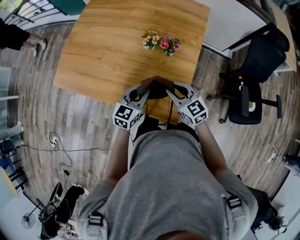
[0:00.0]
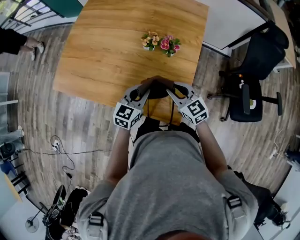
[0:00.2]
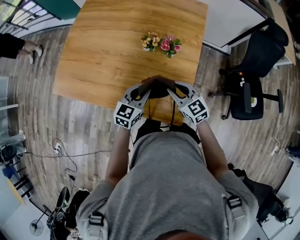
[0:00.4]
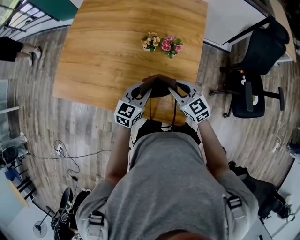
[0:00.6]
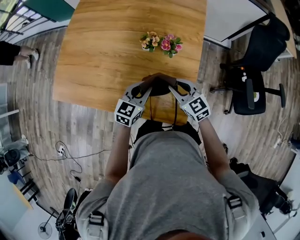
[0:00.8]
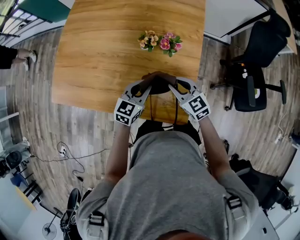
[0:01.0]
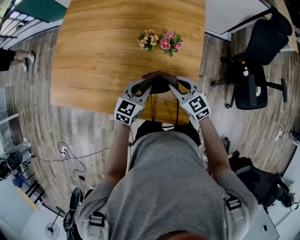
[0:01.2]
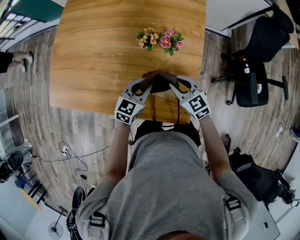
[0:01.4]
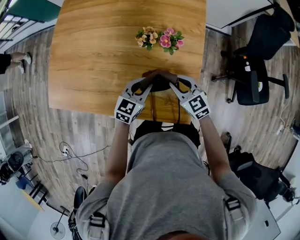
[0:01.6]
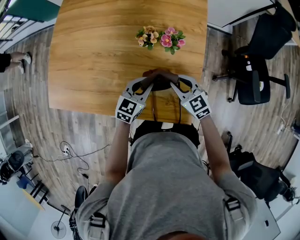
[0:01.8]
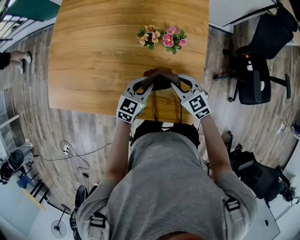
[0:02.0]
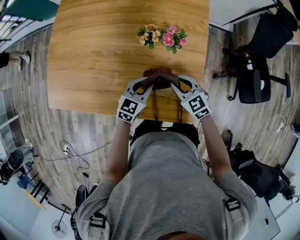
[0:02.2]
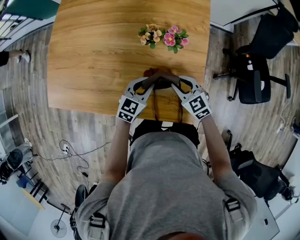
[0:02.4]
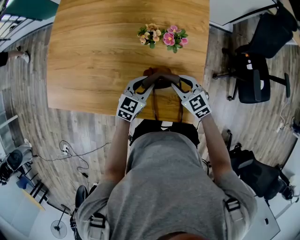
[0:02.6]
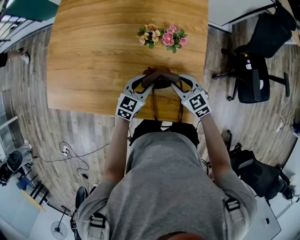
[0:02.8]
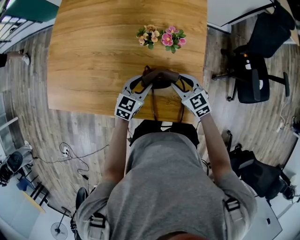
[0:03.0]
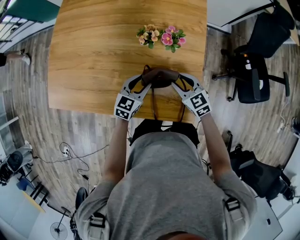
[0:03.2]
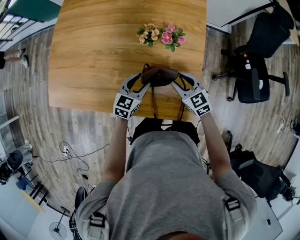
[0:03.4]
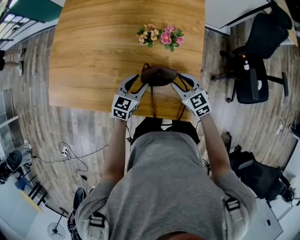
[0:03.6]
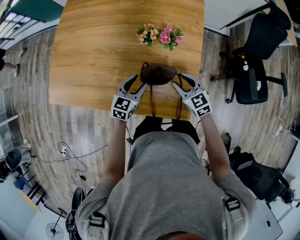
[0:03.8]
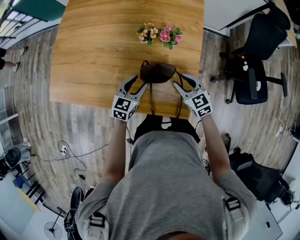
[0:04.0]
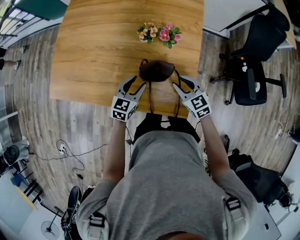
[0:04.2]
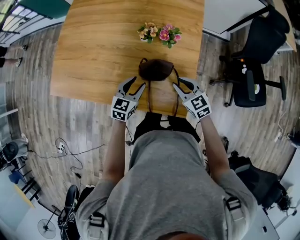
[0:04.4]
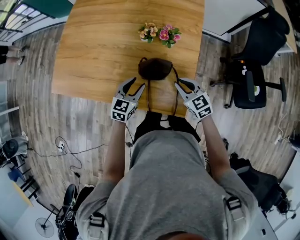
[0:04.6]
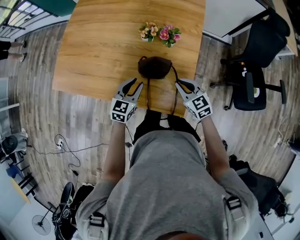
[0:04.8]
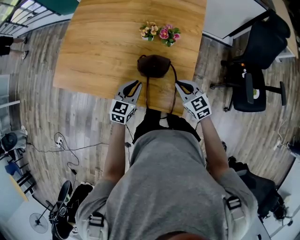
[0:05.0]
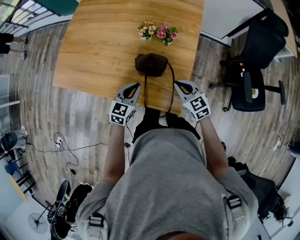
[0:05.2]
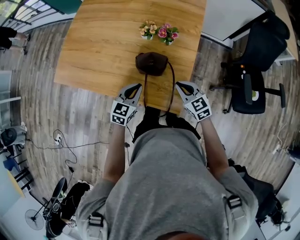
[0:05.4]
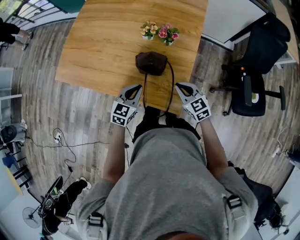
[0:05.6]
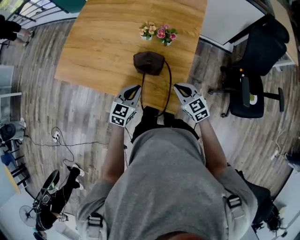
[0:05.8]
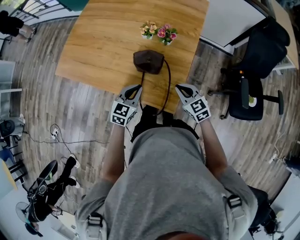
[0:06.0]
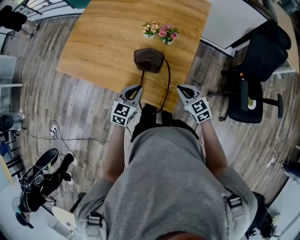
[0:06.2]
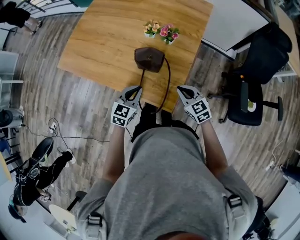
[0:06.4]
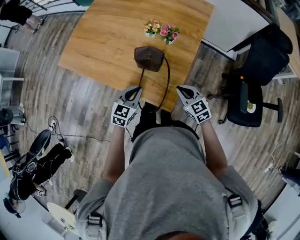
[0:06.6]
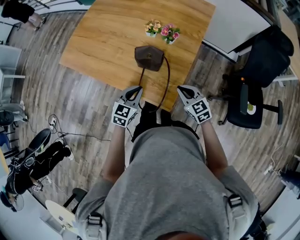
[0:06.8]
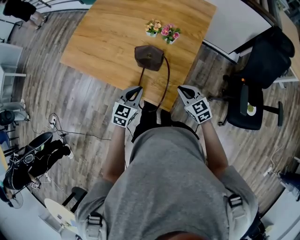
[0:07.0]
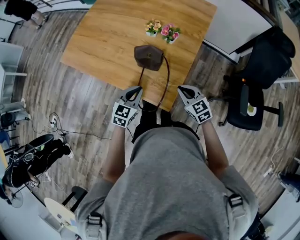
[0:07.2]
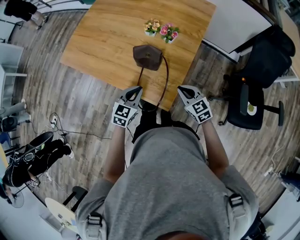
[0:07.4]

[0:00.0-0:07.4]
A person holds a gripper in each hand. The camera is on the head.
0:00.0 to 0:01.4: The grippers both shift forward and downward by roughly 10 cm.
0:01.4 to 0:03.0: The left gripper moves about 5 cm, and opens.
0:03.0 to 0:04.4: The grippers both shift backward by some 5 cm.
0:04.4 to 0:06.0: The right gripper is displaced backward and to the right by approximately 10 cm, and closes up. Meanwhile the left gripper heads backward, covering about 10 cm, and closes.
0:06.0 to 0:07.4: The left gripper moves approximately 5 cm.

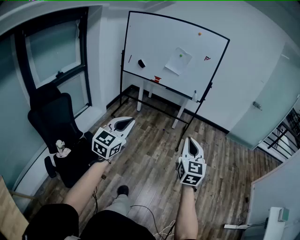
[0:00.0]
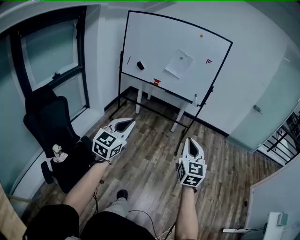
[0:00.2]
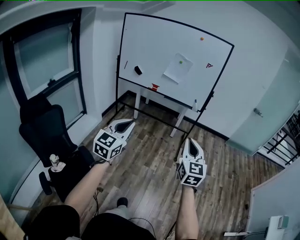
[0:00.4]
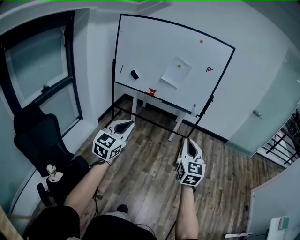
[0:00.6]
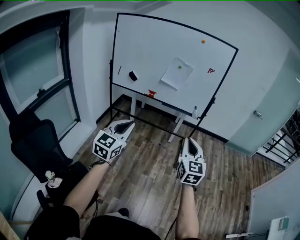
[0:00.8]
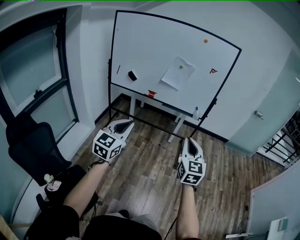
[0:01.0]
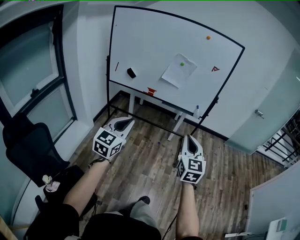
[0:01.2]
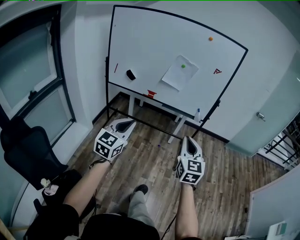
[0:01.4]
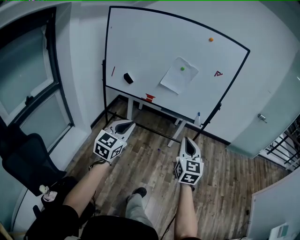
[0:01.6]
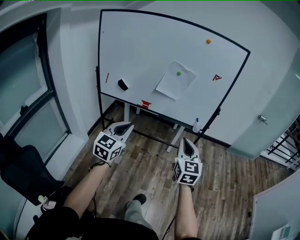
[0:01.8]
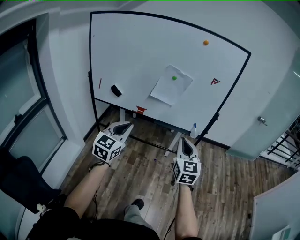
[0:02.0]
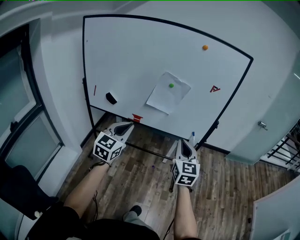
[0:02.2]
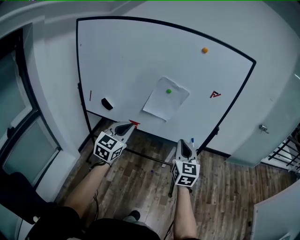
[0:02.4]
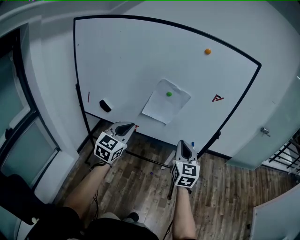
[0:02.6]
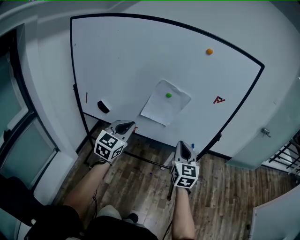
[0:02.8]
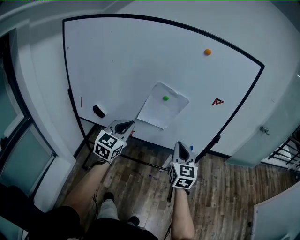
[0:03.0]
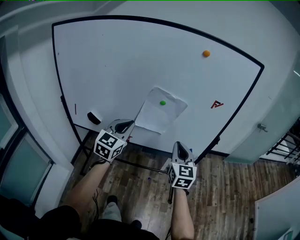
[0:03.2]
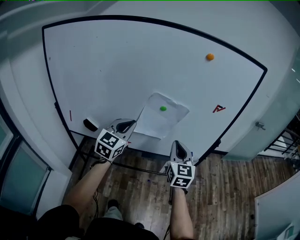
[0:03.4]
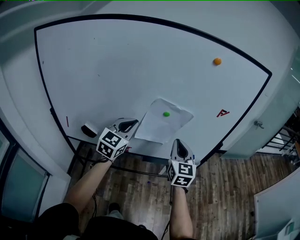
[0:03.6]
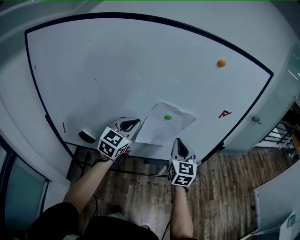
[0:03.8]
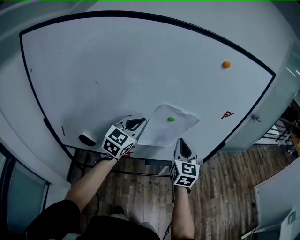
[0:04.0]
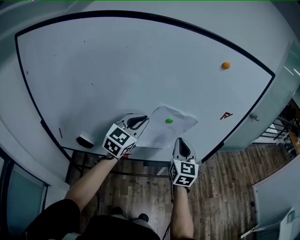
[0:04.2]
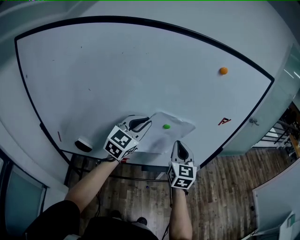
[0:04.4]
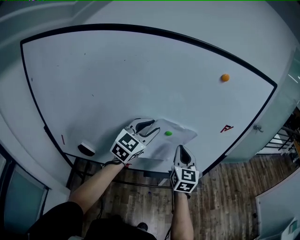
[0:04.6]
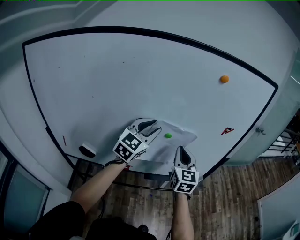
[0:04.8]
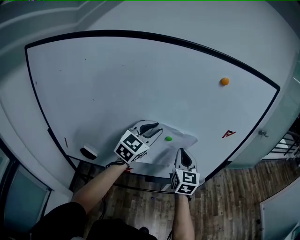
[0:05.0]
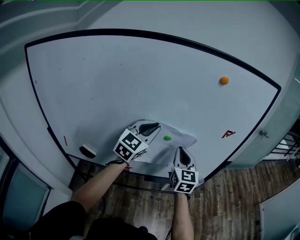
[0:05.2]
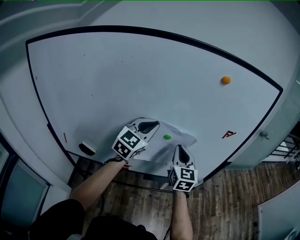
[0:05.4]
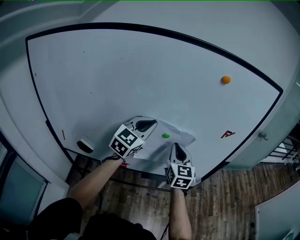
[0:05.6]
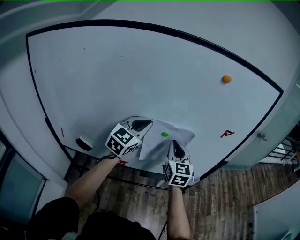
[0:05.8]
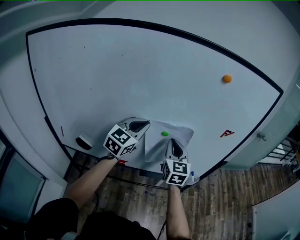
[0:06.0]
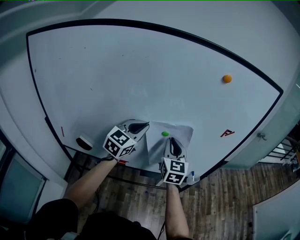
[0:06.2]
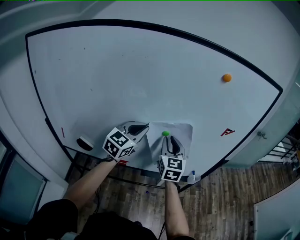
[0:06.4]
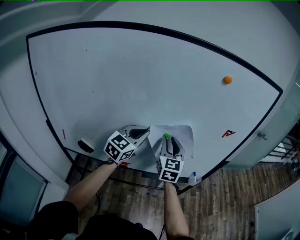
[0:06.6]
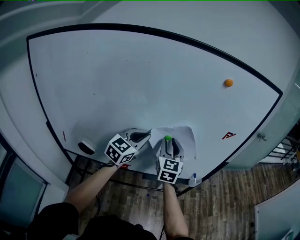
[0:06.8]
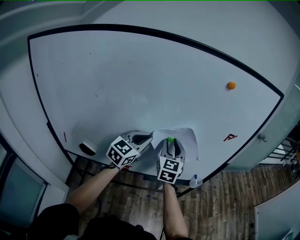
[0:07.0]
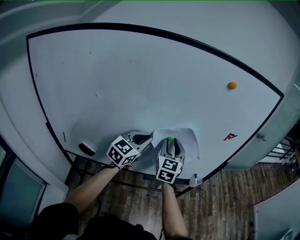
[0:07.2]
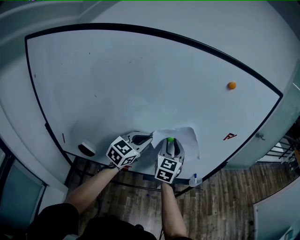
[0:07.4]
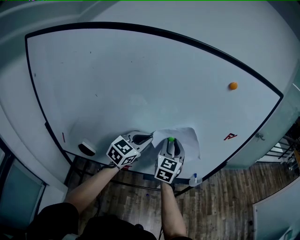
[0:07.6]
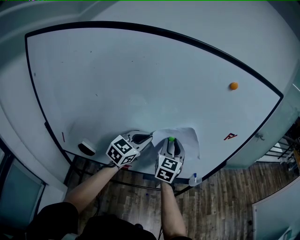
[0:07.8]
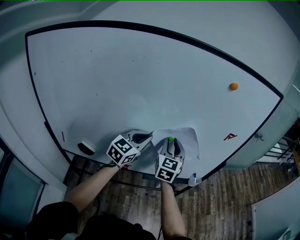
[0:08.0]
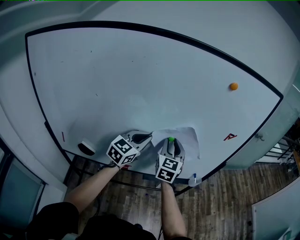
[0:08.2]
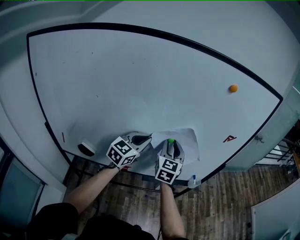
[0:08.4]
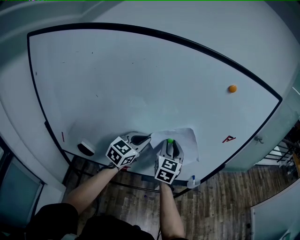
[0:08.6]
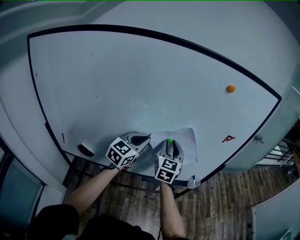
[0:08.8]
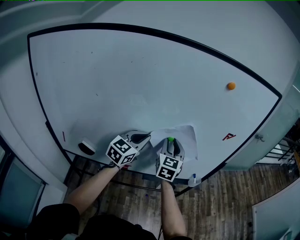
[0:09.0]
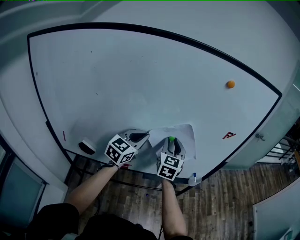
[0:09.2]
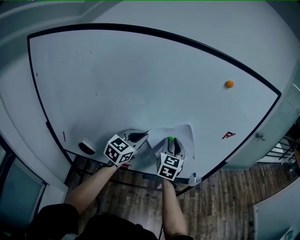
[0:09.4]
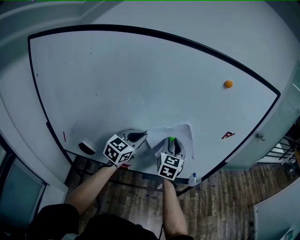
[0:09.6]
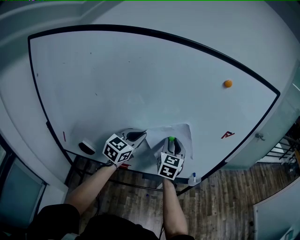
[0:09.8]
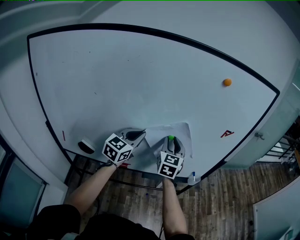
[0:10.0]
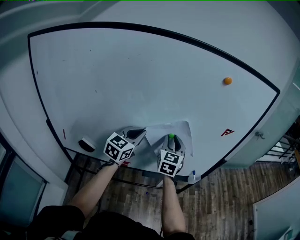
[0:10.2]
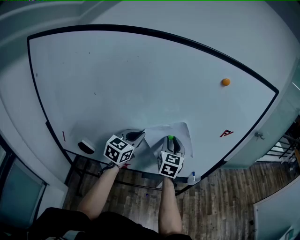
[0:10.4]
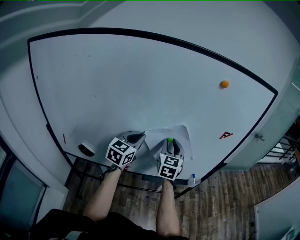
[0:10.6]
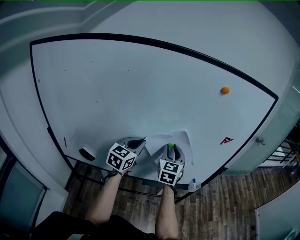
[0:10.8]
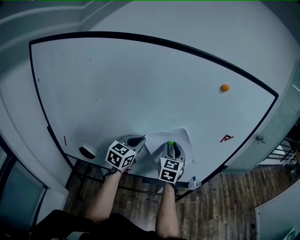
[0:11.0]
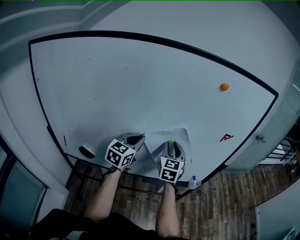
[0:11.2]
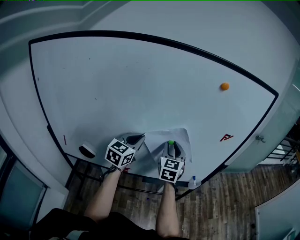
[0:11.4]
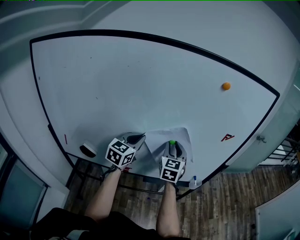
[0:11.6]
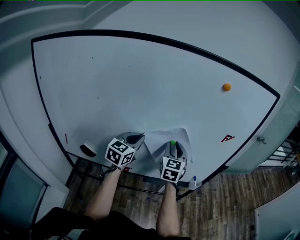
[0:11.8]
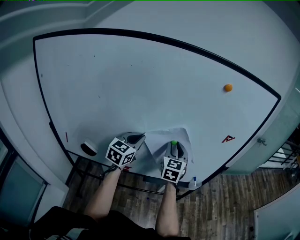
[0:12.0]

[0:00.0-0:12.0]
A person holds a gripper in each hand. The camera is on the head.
0:00.0 to 0:01.6: The pair of grippers is taken forward, about 50 cm.
0:01.6 to 0:03.0: Both grippers travel together forward, about 40 cm.
0:03.0 to 0:04.4: The right gripper travels forward and to the left by approximately 20 cm. Meanwhile the left gripper is displaced forward by some 20 cm, and swivels roughly 20 degrees.
0:04.4 to 0:06.0: The right gripper ends up some 5 cm from where it was. The left gripper opens, then closes again.
0:06.0 to 0:07.6: The right gripper opens up.
0:07.6 to 0:09.0: Neither gripper changes place.
0:09.0 to 0:10.4: There are only small adjustments of the grippers.
0:10.4 to 0:12.0: Both grippers stay put.

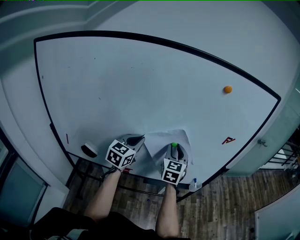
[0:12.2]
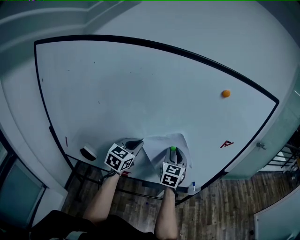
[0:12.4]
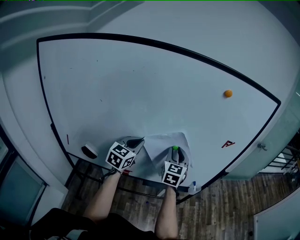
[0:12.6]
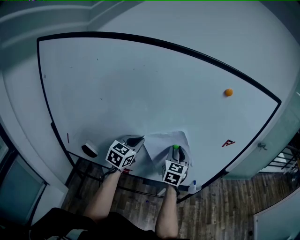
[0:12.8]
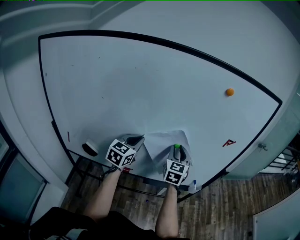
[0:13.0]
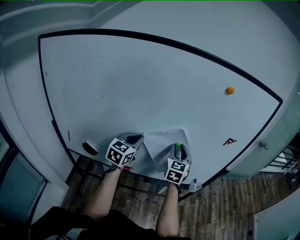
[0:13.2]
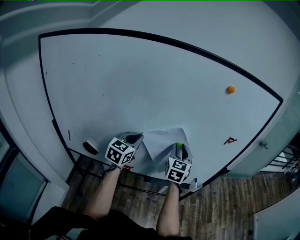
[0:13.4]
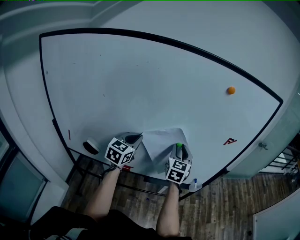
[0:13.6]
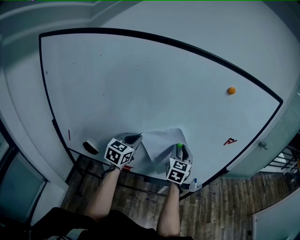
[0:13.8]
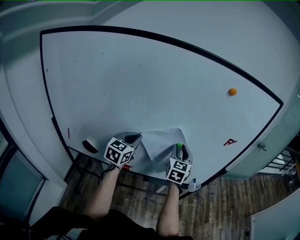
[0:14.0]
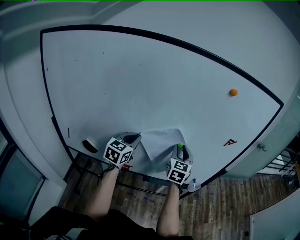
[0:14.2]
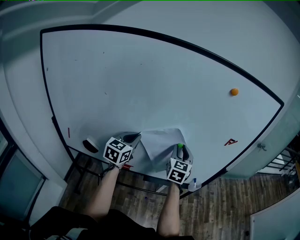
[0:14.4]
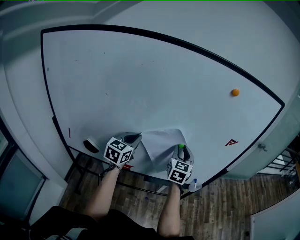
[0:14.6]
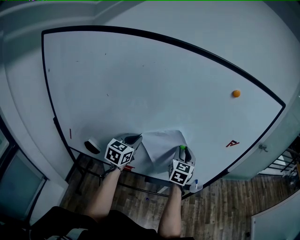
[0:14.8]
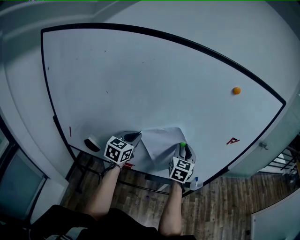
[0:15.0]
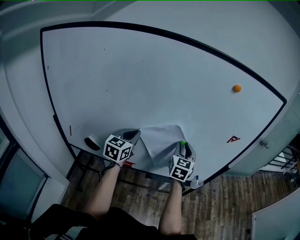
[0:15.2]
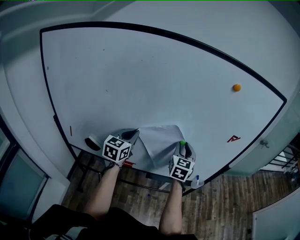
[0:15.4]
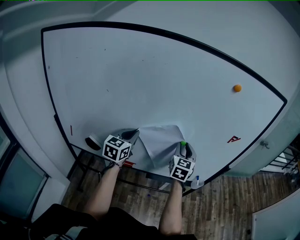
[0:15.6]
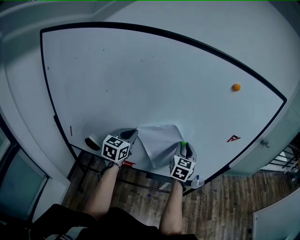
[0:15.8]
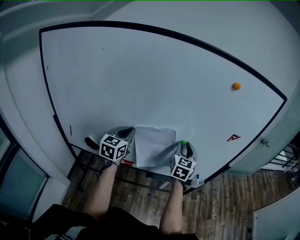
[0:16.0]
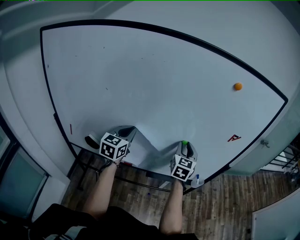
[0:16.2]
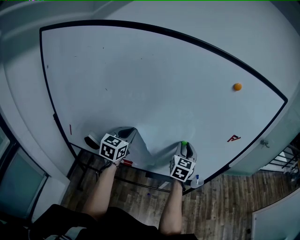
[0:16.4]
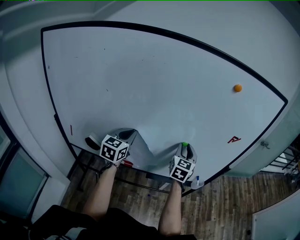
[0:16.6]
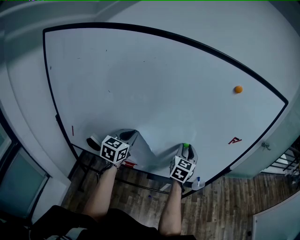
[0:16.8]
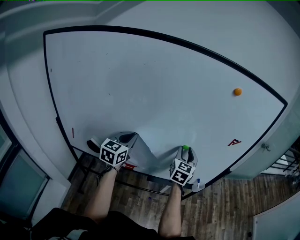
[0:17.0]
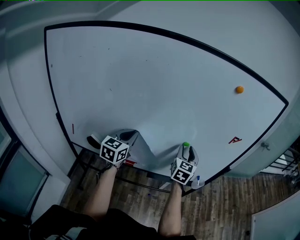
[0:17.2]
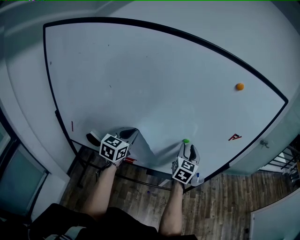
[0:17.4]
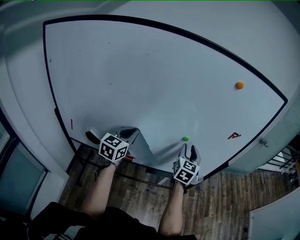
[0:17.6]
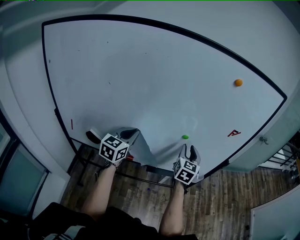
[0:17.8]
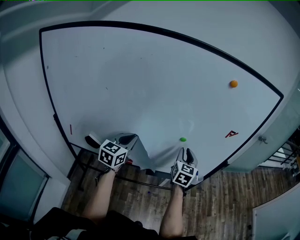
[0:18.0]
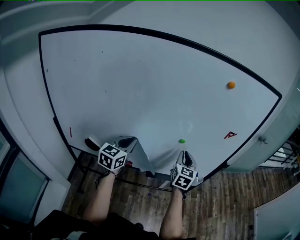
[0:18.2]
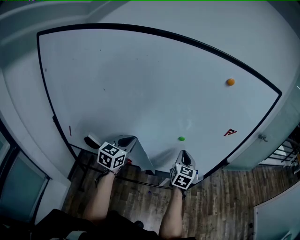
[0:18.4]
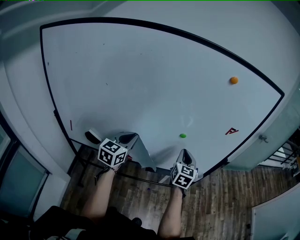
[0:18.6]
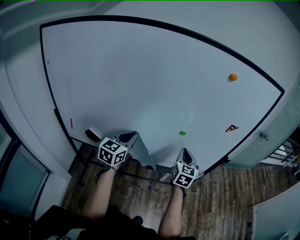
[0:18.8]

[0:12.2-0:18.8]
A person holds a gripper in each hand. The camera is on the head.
0:12.2 to 0:15.4: There are only small adjustments of the grippers.
0:15.4 to 0:17.2: The grippers move only a little.
0:17.2 to 0:18.8: The left gripper moves some 5 cm. Meanwhile the right gripper moves backward, approximately 5 cm, and closes up.
